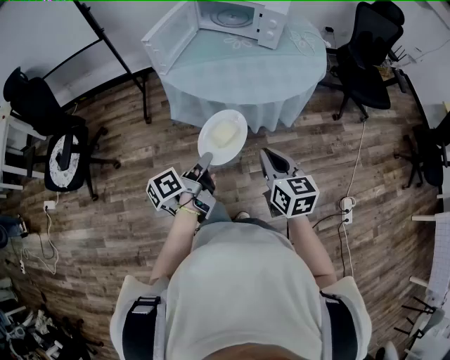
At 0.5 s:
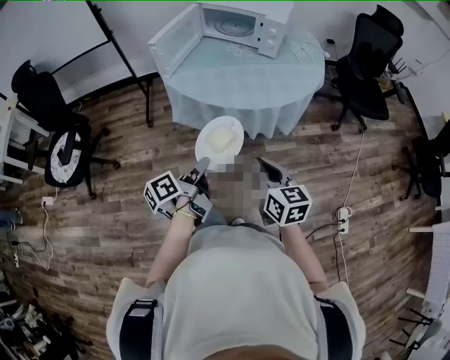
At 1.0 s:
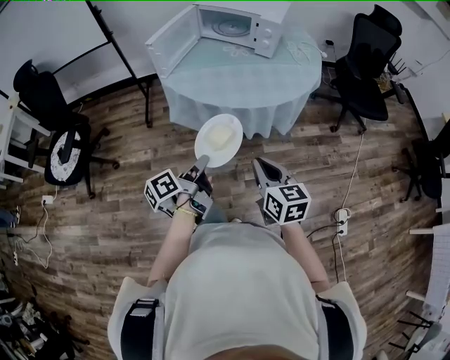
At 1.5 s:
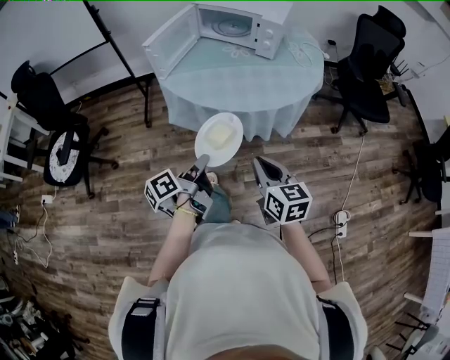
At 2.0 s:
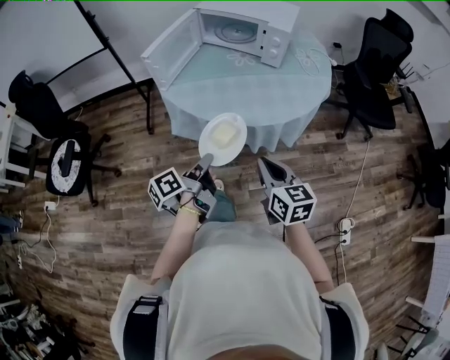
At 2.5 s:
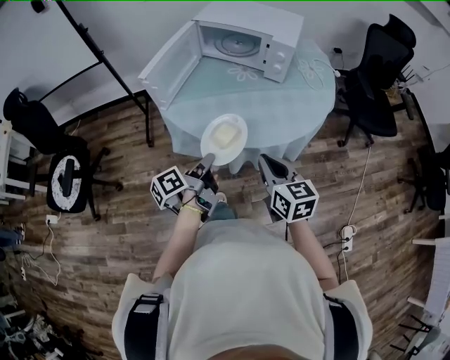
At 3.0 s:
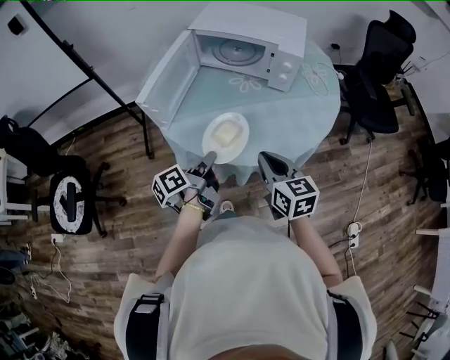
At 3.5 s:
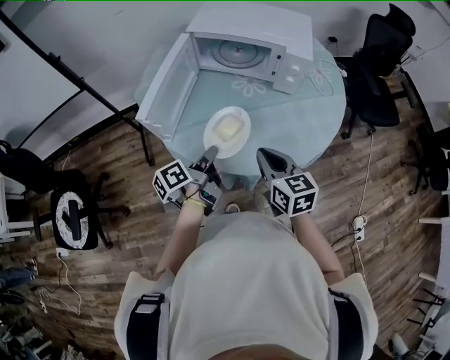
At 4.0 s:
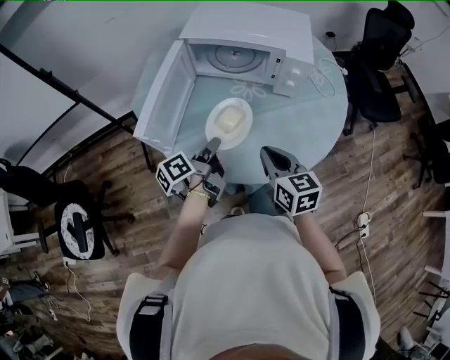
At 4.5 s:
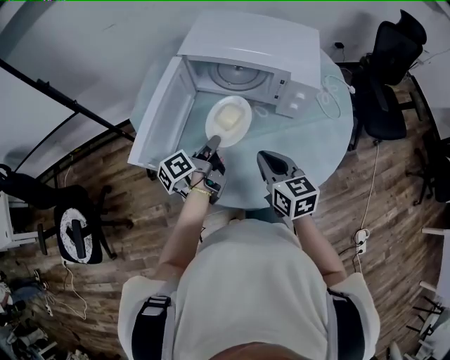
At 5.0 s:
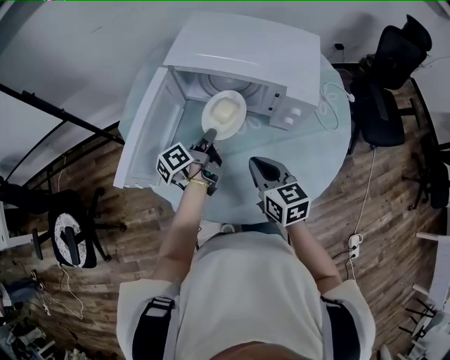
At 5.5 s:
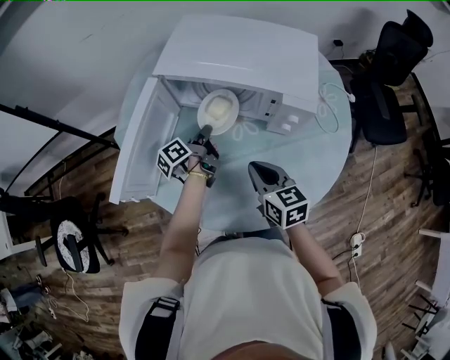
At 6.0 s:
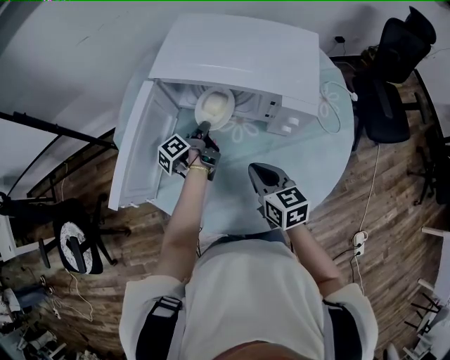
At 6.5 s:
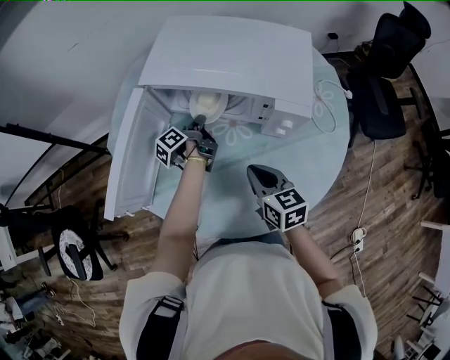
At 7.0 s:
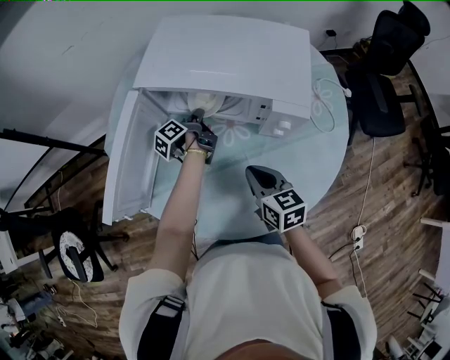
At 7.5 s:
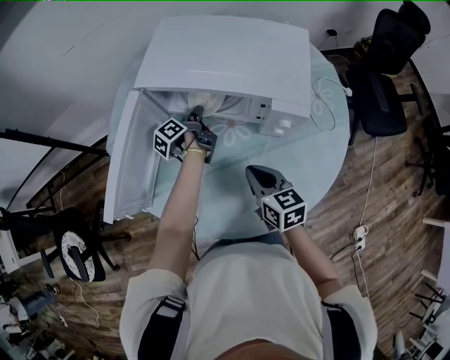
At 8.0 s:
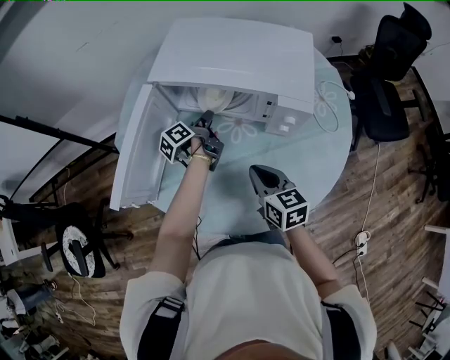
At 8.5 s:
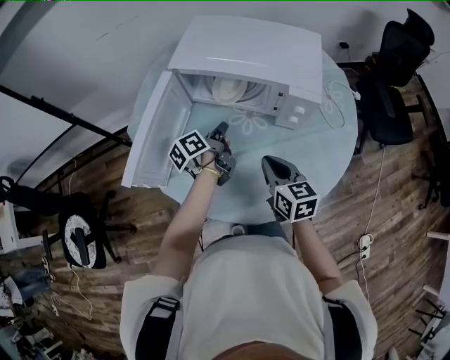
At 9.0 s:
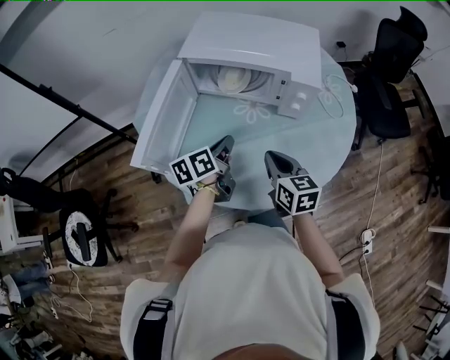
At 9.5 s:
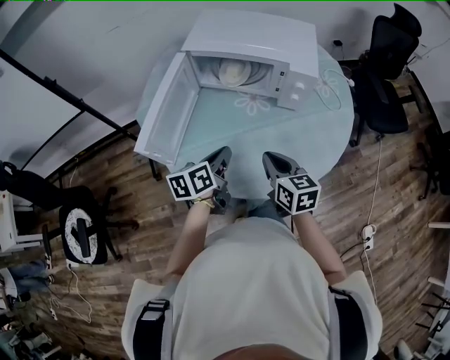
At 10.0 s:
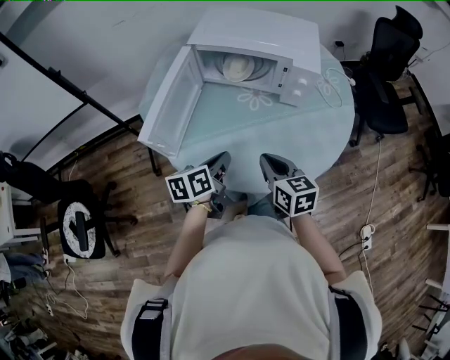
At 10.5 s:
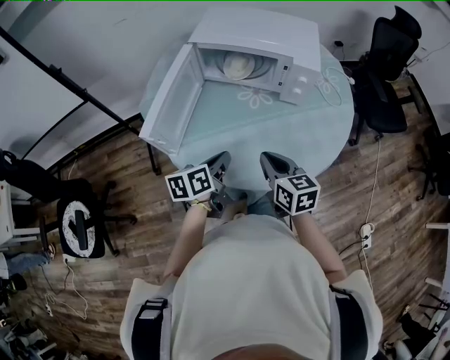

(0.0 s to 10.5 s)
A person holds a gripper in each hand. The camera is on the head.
0.0 s - 2.0 s: The right gripper shifts by roughly 5 cm.
2.0 s - 4.0 s: The right gripper ends up some 30 cm from where it was.
4.0 s - 6.5 s: The right gripper changes place by approximately 20 cm.
8.5 s - 10.5 s: The right gripper changes place by some 15 cm.

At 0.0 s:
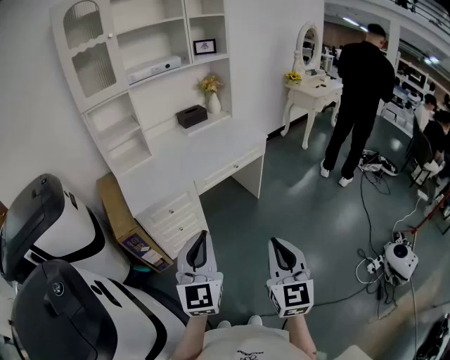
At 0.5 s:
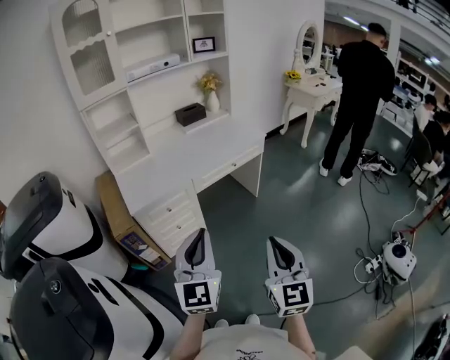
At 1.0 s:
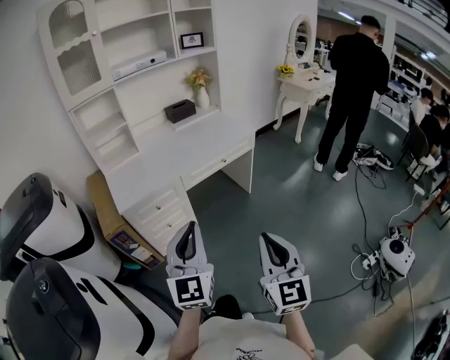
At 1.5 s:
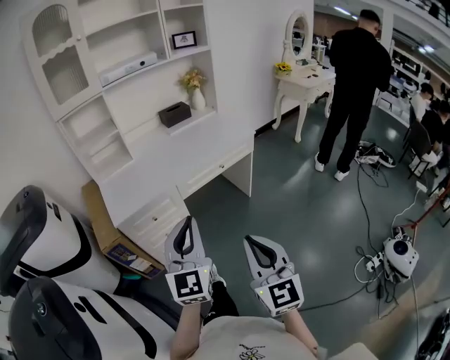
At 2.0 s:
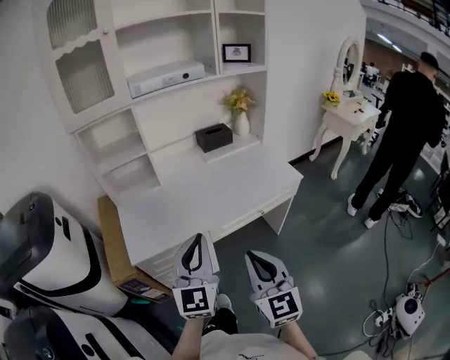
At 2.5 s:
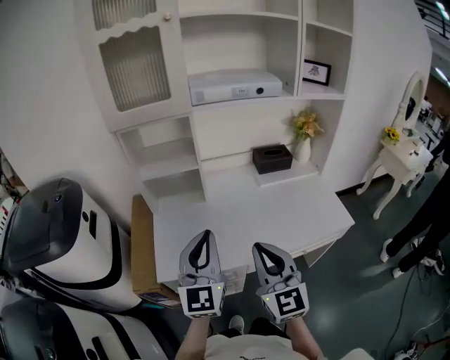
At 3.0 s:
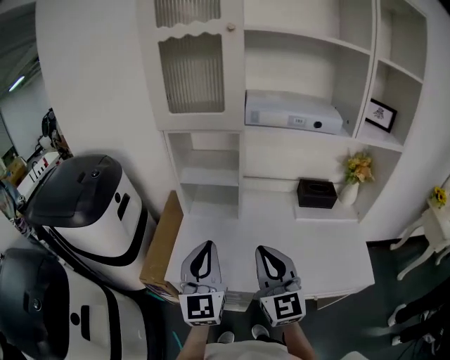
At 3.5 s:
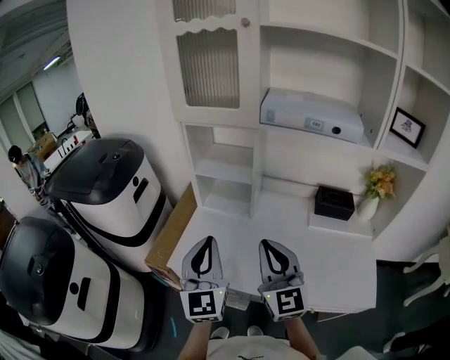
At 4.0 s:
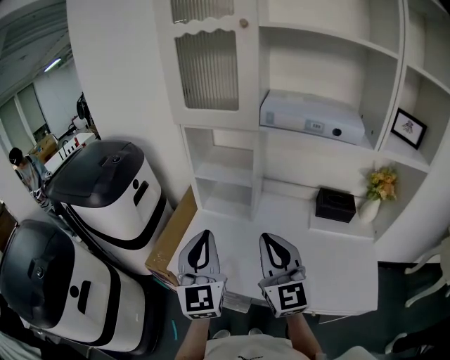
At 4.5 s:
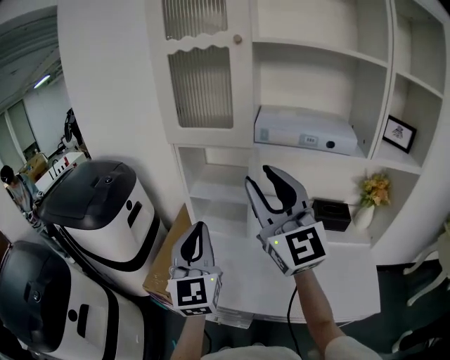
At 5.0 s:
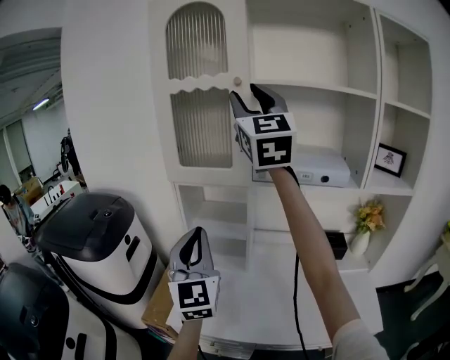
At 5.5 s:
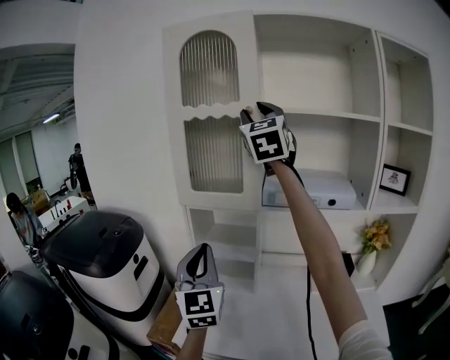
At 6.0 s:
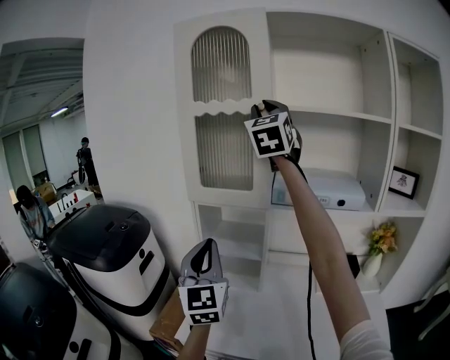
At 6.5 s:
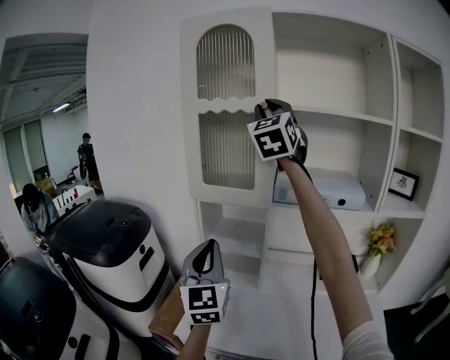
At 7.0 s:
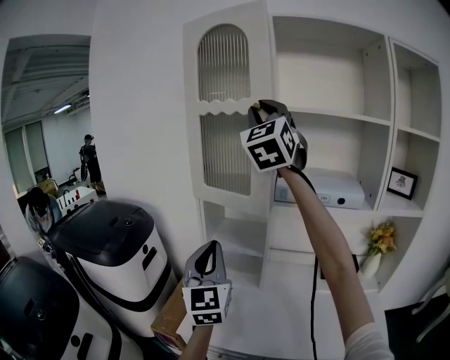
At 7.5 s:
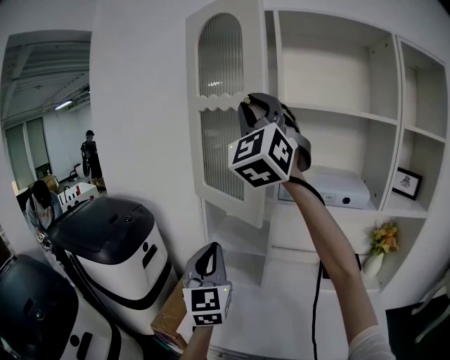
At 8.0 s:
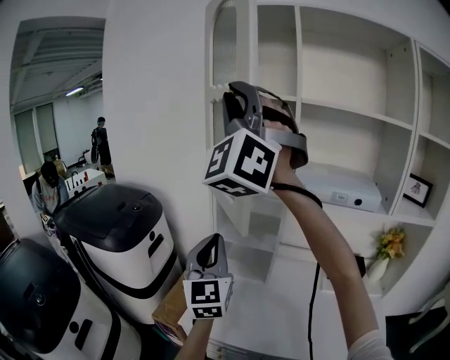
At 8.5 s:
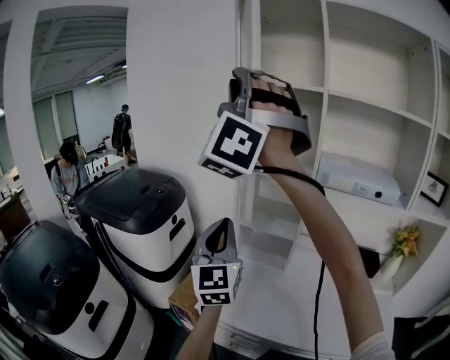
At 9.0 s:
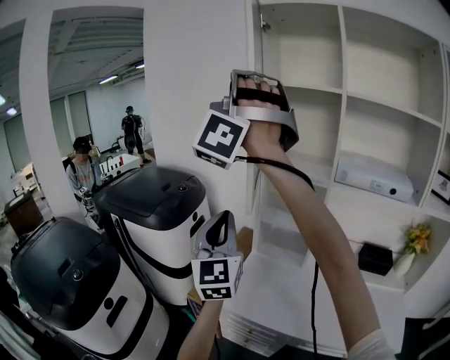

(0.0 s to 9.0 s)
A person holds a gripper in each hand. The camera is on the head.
0.0 s - 2.0 s: Both grippers move forward, some 30 cm. The right gripper changes its angle by some 20 degrees.
2.0 s - 4.5 s: The left gripper moves roughly 30 cm, and rotates some 40 degrees. Meanwhile the right gripper changes place by about 50 cm, changes its angle by about 50 degrees, and opens its fingers.
4.5 s - 7.0 s: The left gripper goes roughly 5 cm upward. Meanwhile the right gripper heads upward and forward, covering roughly 30 cm, and turns by roughly 30 degrees.
7.0 s - 9.0 s: The left gripper moves to the left, some 15 cm; the right gripper moves to the left, some 25 cm, and rotates around the line of its fingers by roughly 40 degrees, counterclockwise from behind.

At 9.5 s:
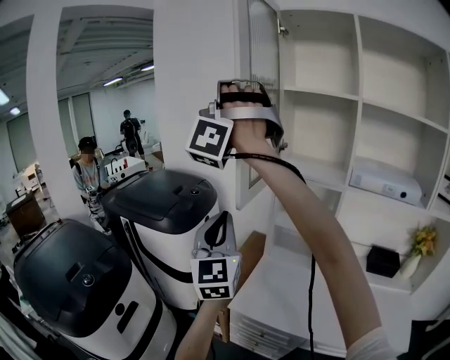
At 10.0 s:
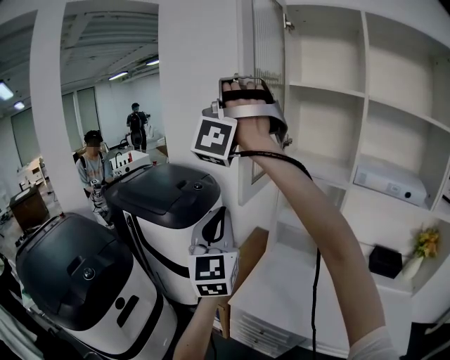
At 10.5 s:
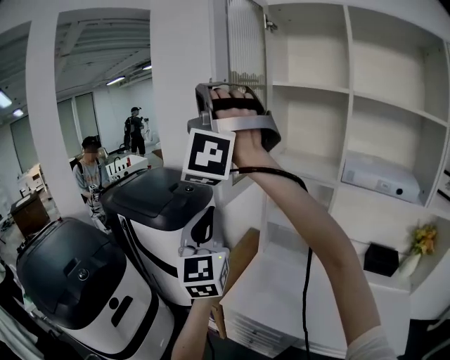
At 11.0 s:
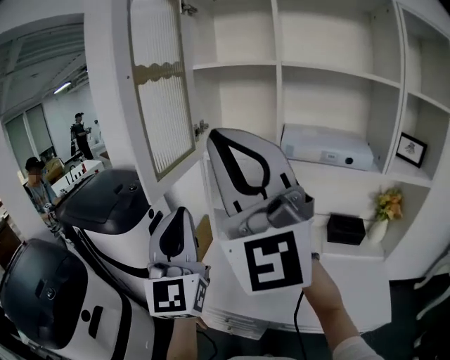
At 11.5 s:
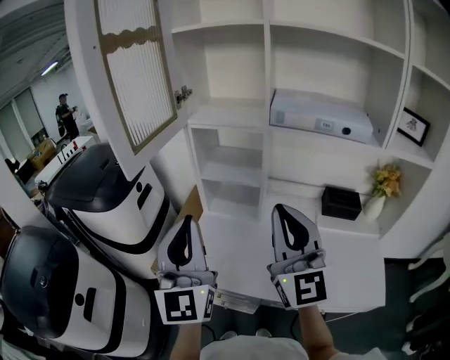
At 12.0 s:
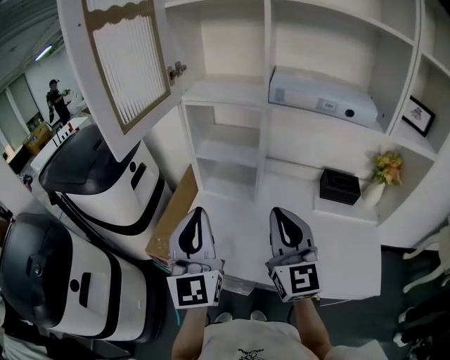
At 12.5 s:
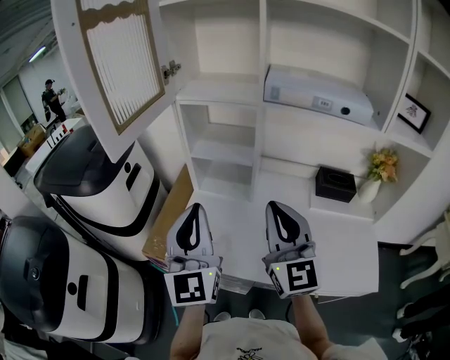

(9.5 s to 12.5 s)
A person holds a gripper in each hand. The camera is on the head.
9.5 s - 11.0 s: The left gripper goes some 15 cm to the right and backward, while the right gripper shifts roughly 30 cm to the right, backward and downward, and rolls clockwise, seen from behind, by approximately 50 degrees.
11.0 s - 12.5 s: The right gripper goes approximately 30 cm downward and to the right, and swivels approximately 40 degrees; the left gripper is displaced downward and to the right by some 15 cm.

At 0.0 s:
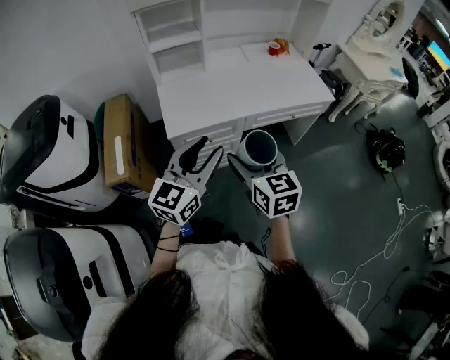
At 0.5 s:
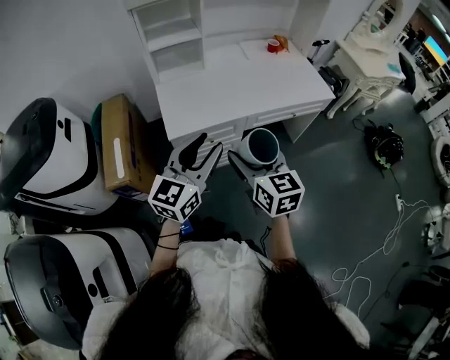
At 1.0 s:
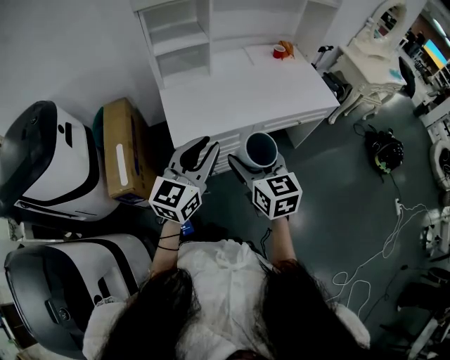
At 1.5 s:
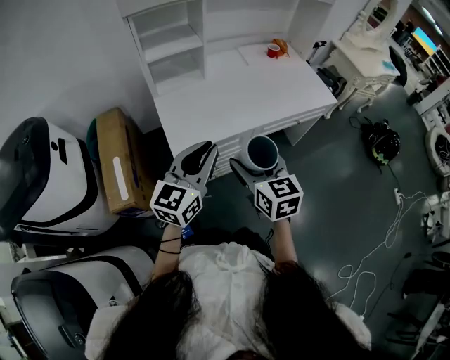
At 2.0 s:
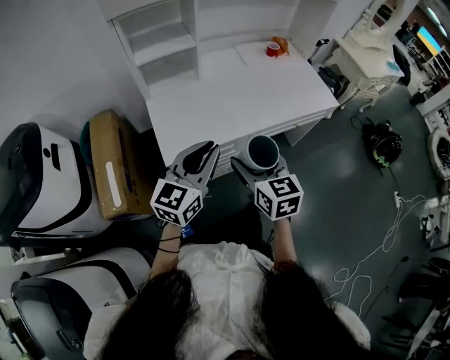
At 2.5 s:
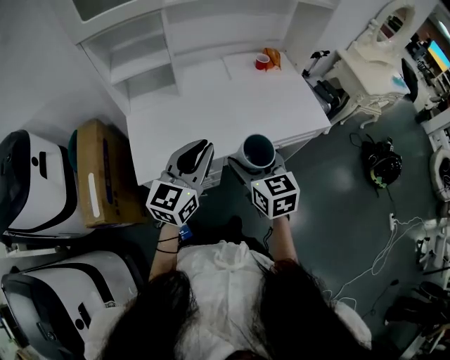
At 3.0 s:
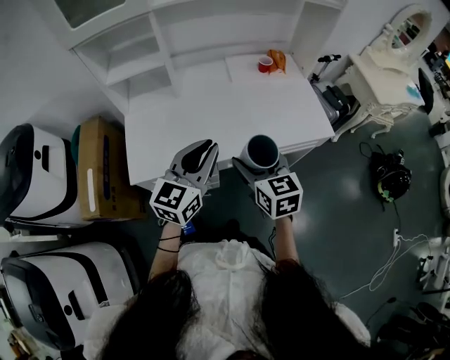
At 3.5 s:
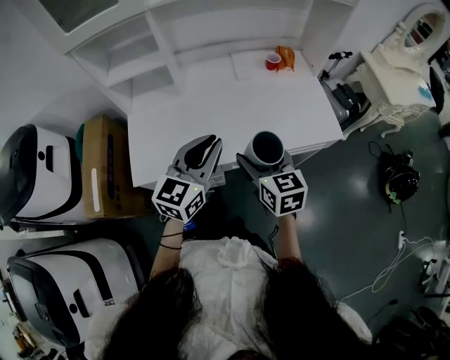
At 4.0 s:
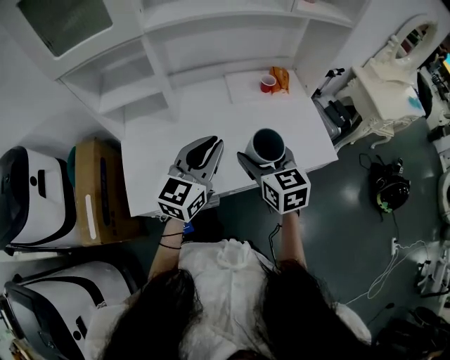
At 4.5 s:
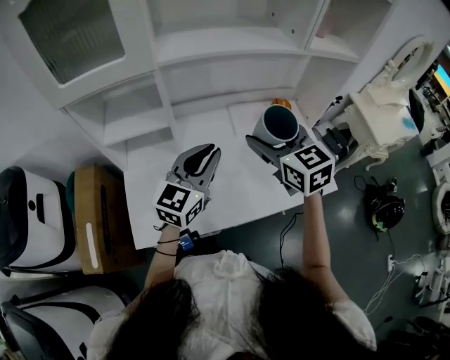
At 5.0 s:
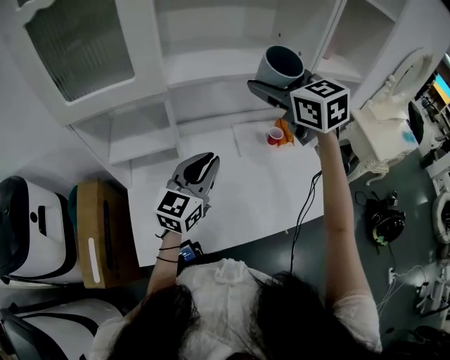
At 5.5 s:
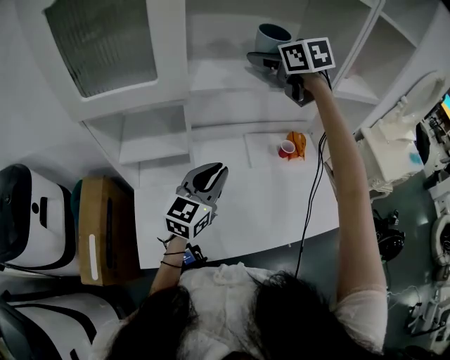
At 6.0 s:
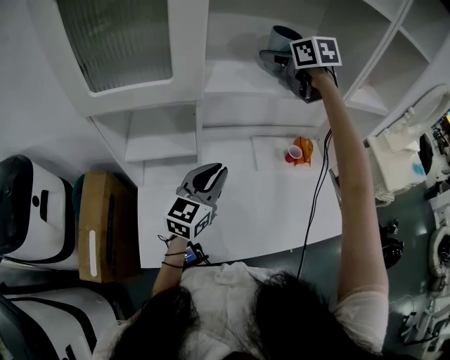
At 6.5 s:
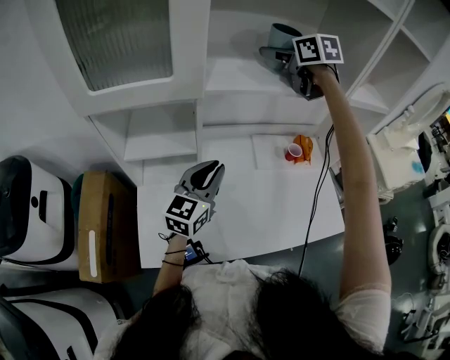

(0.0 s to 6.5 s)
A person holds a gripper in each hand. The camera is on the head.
0.0 s - 2.0 s: The grippers both shift forward by about 15 cm. The left gripper closes.
2.0 s - 4.5 s: Both grippers travel together forward, some 35 cm. The right gripper changes its angle by roughly 20 degrees.
4.5 s - 6.5 s: The right gripper travels forward and upward by about 35 cm. The left gripper travels forward and to the left by about 10 cm.
